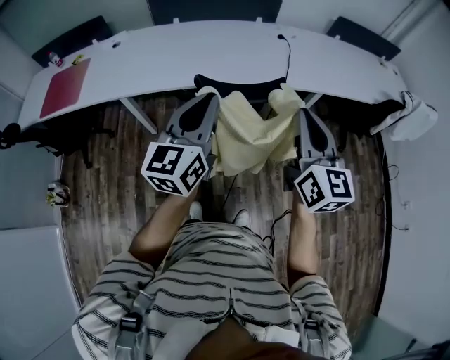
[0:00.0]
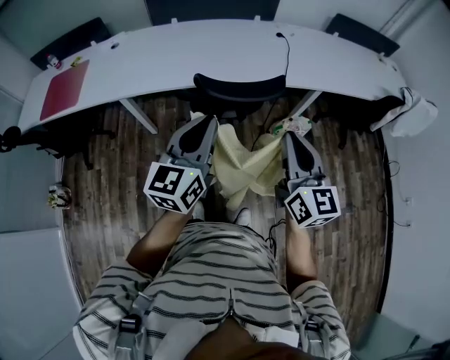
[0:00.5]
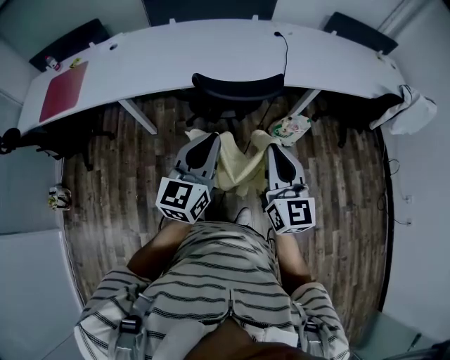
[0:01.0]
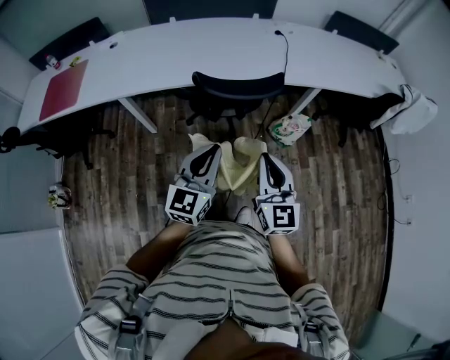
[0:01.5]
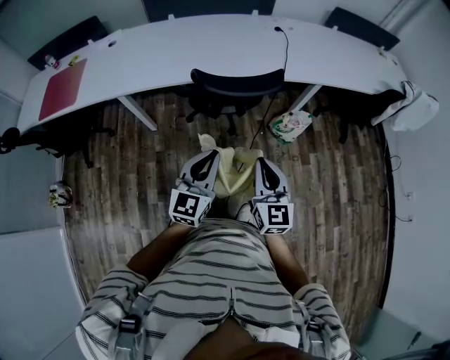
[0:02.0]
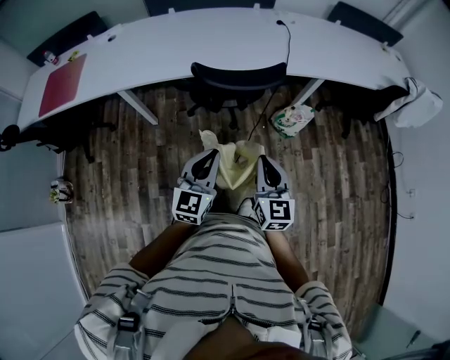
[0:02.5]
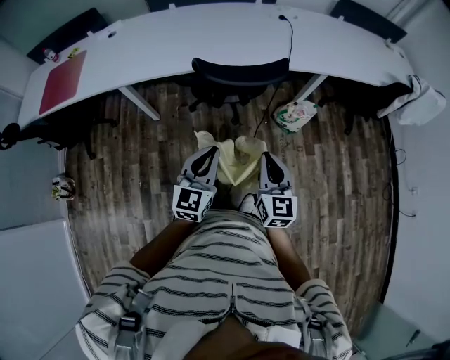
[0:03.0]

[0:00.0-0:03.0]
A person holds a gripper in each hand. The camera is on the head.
0:00.0 to 0:01.5: The grippers both shift downward and backward by approximately 15 cm.
0:01.5 to 0:03.0: Both grippers travel together downward, approximately 10 cm.

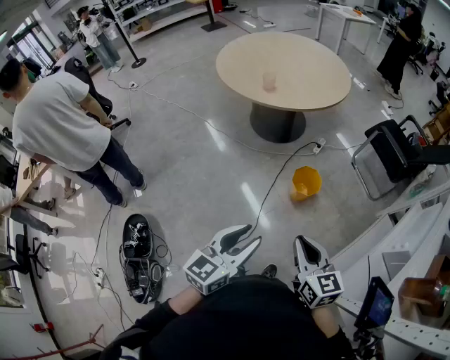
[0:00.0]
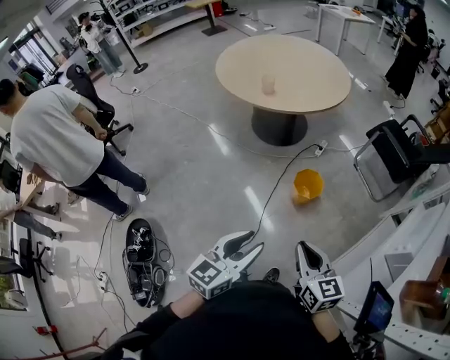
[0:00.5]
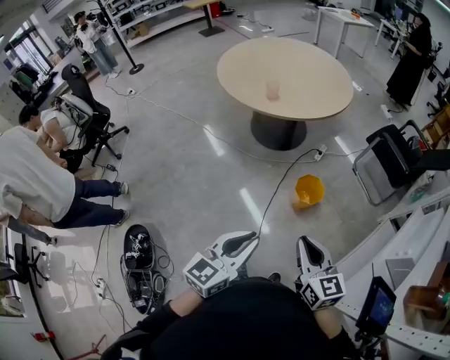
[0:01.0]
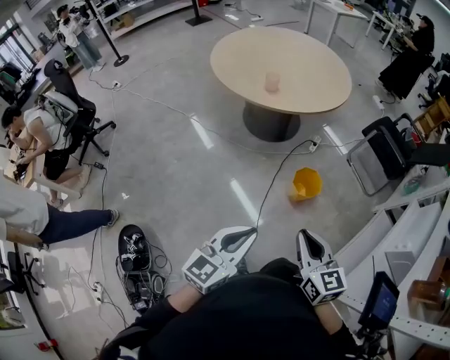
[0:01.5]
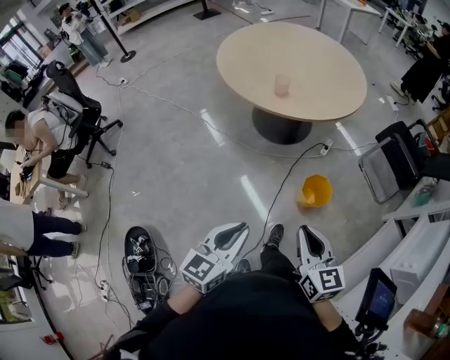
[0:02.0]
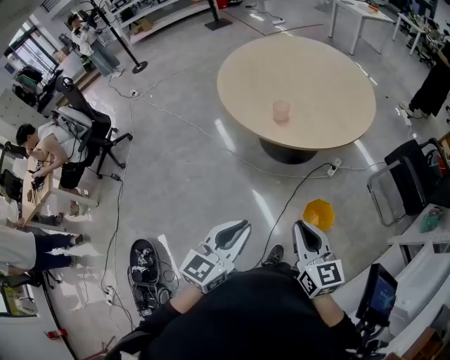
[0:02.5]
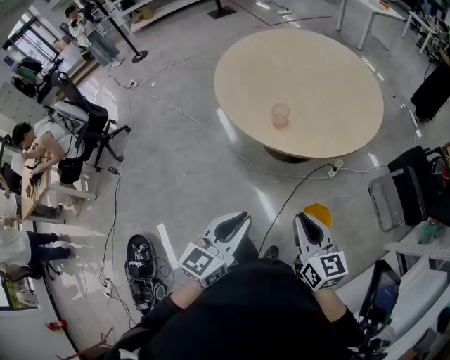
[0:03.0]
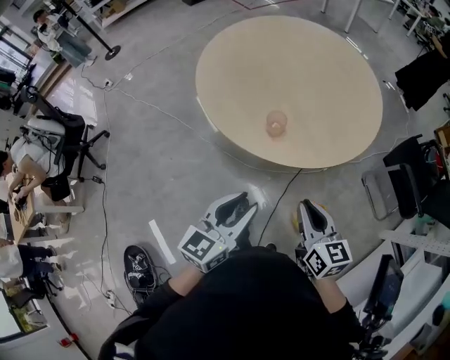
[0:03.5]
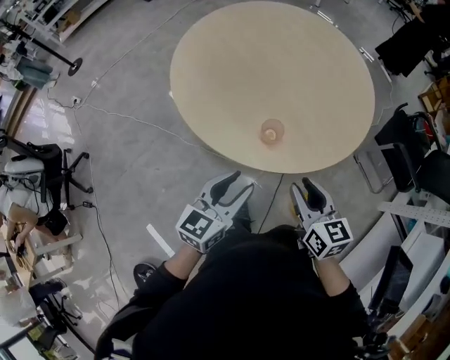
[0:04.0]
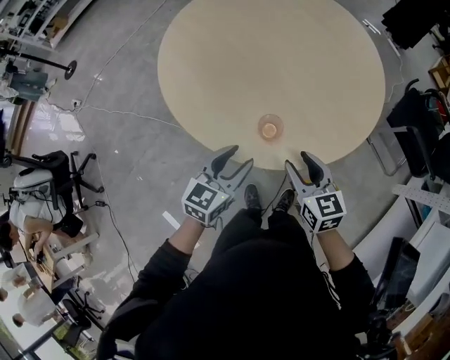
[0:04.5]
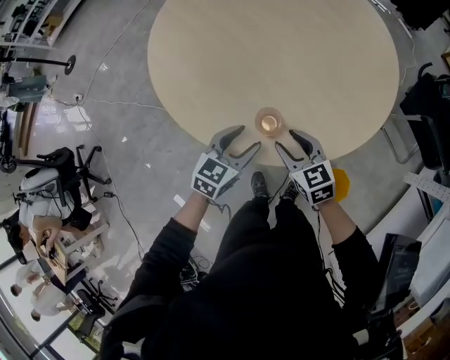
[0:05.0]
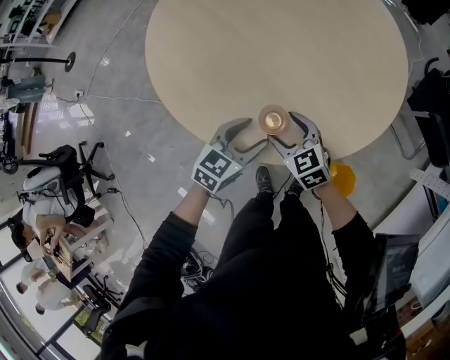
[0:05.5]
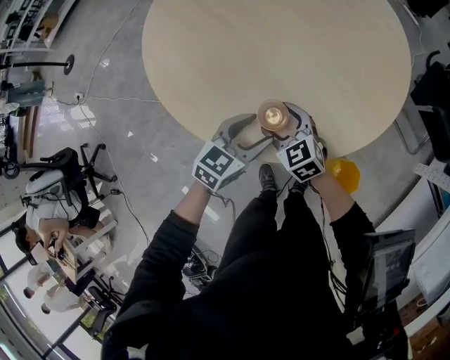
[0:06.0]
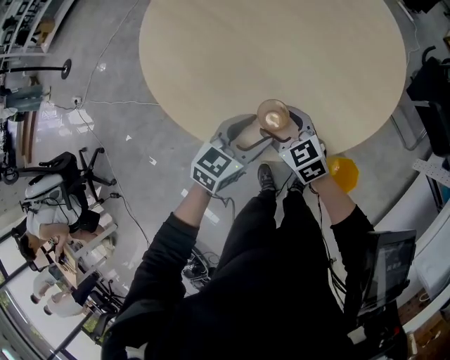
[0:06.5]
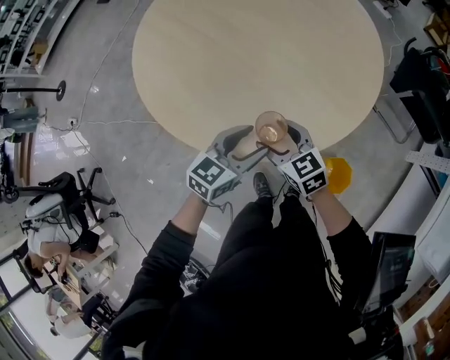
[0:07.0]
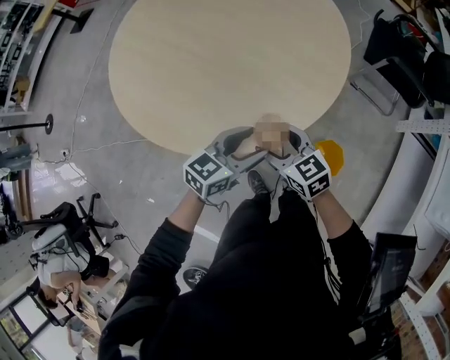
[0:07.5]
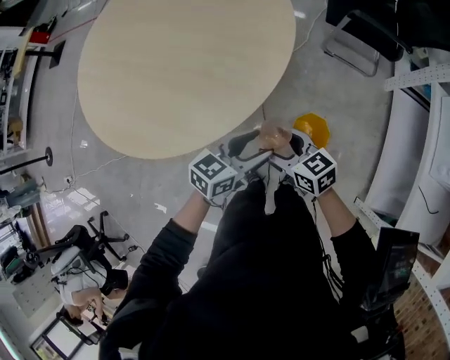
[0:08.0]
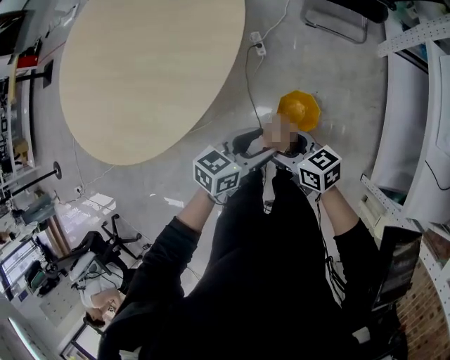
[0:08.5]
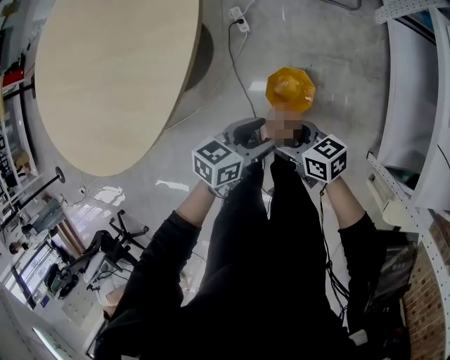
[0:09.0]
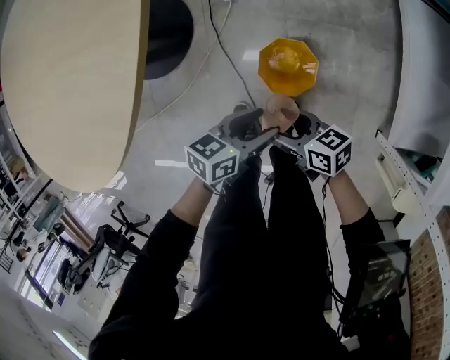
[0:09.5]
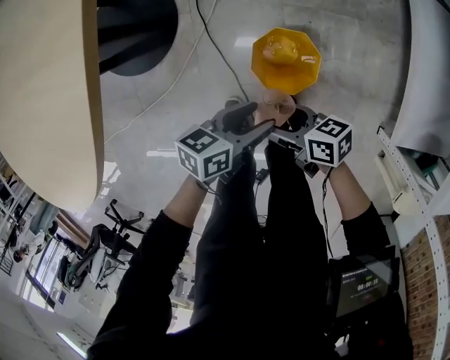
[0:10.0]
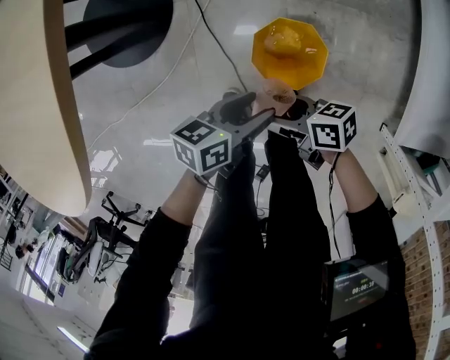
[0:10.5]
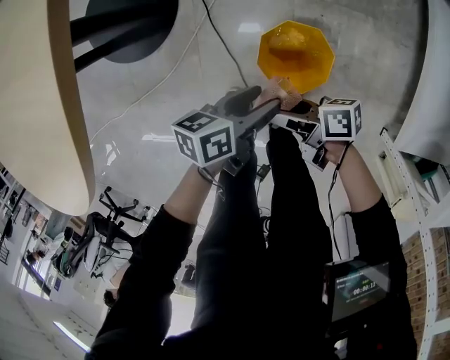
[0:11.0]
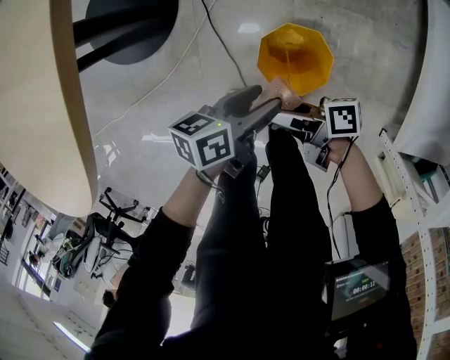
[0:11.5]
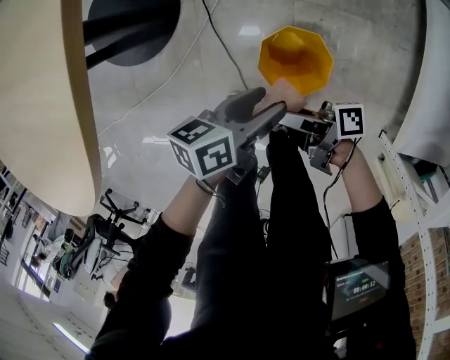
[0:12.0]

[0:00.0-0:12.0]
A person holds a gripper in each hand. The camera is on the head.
0:00.0 to 0:02.0: Both grippers travel together forward and to the left, approximately 20 cm. The left gripper closes its fingers.
0:02.0 to 0:04.0: The two grippers travel together, forward, some 50 cm. The left gripper opens.
0:04.0 to 0:06.0: The left gripper heads downward, forward and to the right, covering some 25 cm, rotates approximately 30 degrees, and opens its fingers; the right gripper travels downward and forward by roughly 30 cm, swivels approximately 30 degrees, and opens up.
0:06.0 to 0:08.0: The grippers both shift to the right and backward by some 30 cm. The left gripper changes its angle by roughly 30 degrees. Meanwhile the right gripper turns by approximately 40 degrees.
0:08.0 to 0:10.0: The grippers both shift downward by roughly 35 cm. The right gripper swivels about 40 degrees; the left gripper changes its angle by about 30 degrees.
0:10.0 to 0:12.0: The right gripper moves approximately 5 cm, and turns by approximately 40 degrees, while the left gripper changes place by some 5 cm.

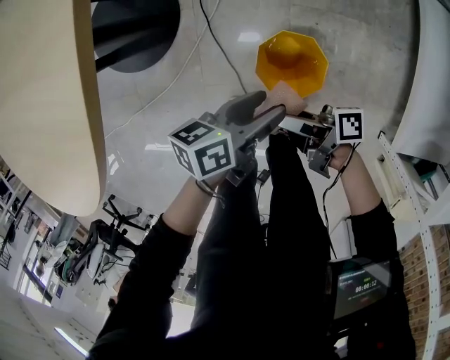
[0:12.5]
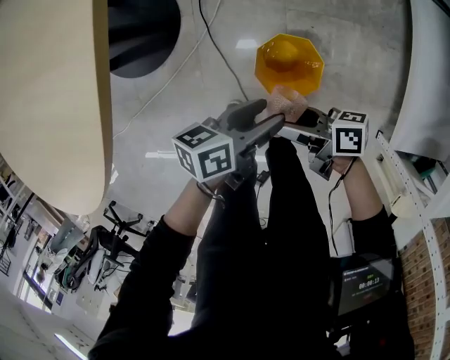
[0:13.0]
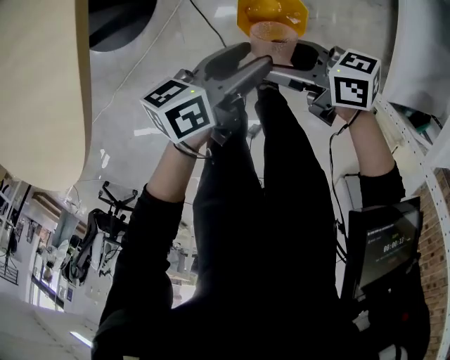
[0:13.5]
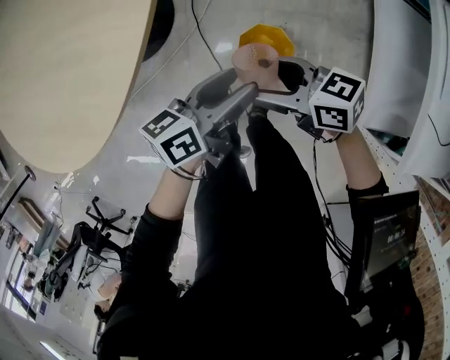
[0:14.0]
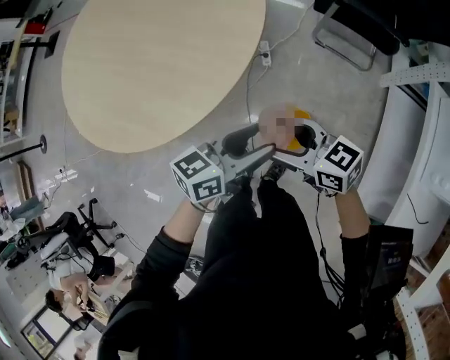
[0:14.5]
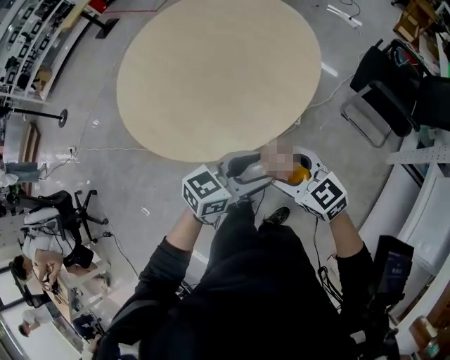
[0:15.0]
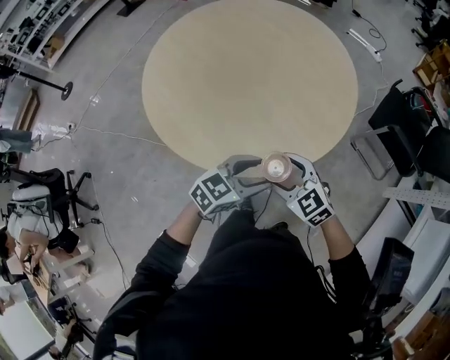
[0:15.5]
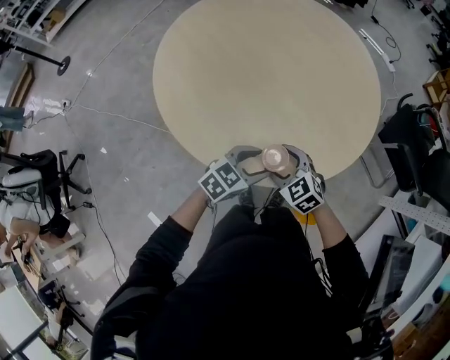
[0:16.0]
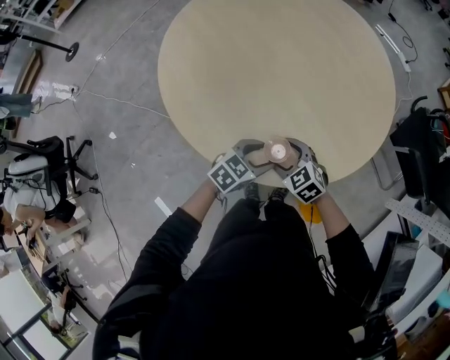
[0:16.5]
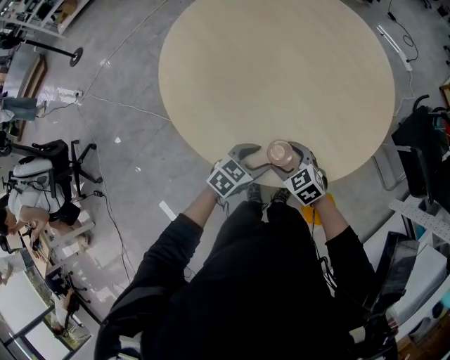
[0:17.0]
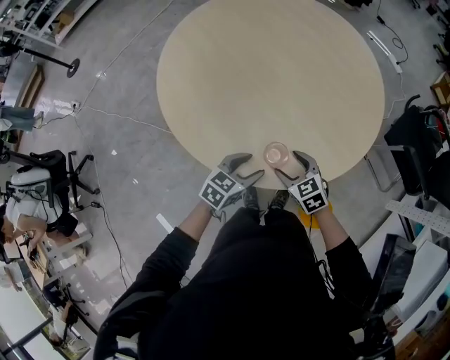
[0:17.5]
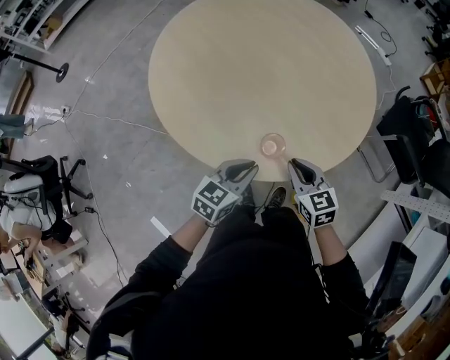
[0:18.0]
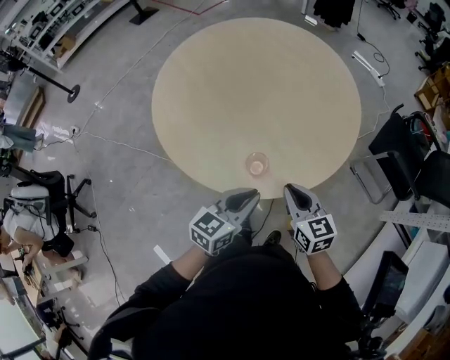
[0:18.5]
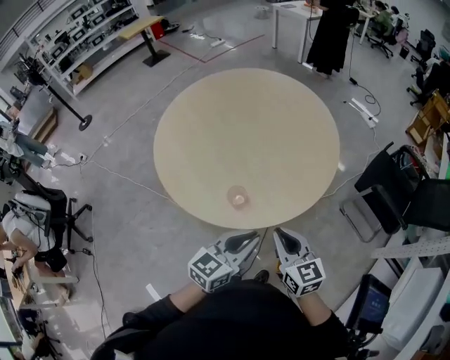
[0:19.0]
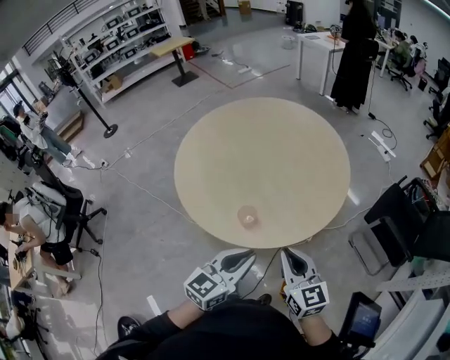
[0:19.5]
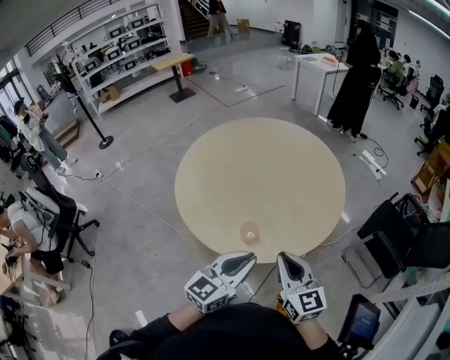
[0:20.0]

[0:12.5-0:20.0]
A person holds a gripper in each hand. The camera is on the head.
0:12.5 to 0:14.5: Both grippers move upward, approximately 35 cm. The right gripper rolls counterclockwise, seen from behind, by approximately 70 degrees. Meanwhile the left gripper rotates roughly 30 degrees.
0:14.5 to 0:16.5: The grippers both shift to the left and forward by approximately 40 cm. The right gripper swivels roughly 50 degrees. The left gripper turns by approximately 30 degrees.
0:16.5 to 0:18.0: The right gripper shifts about 10 cm upward and to the right, changes its angle by about 30 degrees, and closes its fingers. The left gripper travels upward and backward by some 10 cm, and closes.
0:18.0 to 0:20.0: The left gripper travels upward, to the right and backward by roughly 25 cm, and changes its angle by about 30 degrees, while the right gripper moves upward, backward and to the right, roughly 25 cm, and changes its angle by roughly 30 degrees.

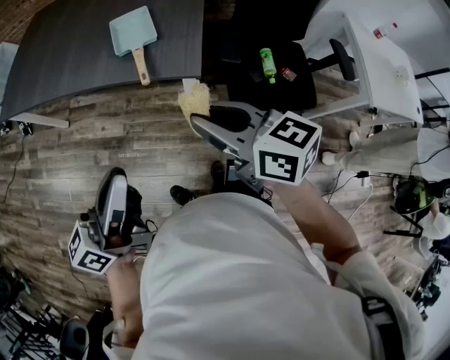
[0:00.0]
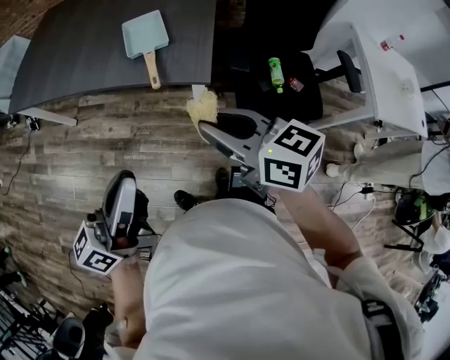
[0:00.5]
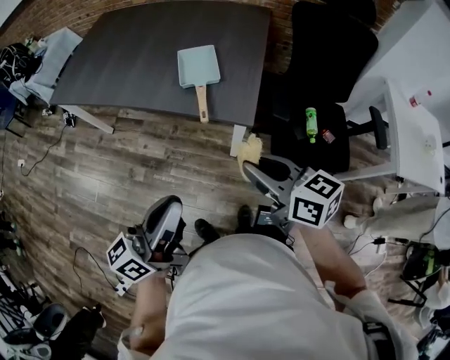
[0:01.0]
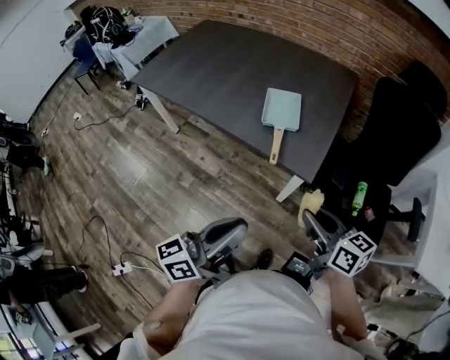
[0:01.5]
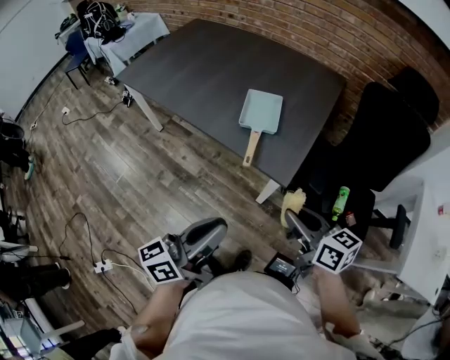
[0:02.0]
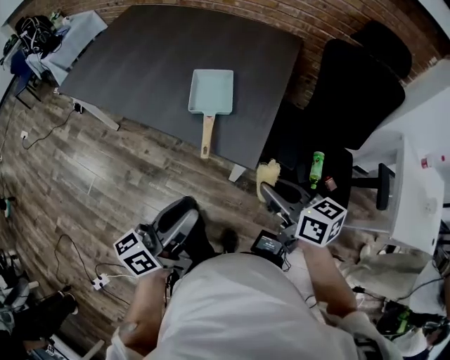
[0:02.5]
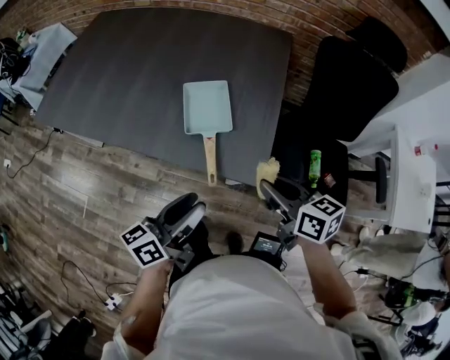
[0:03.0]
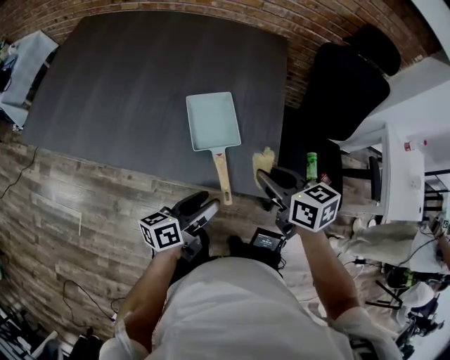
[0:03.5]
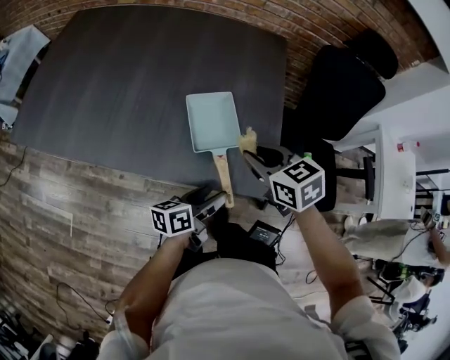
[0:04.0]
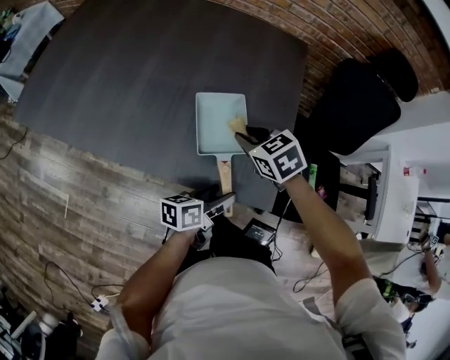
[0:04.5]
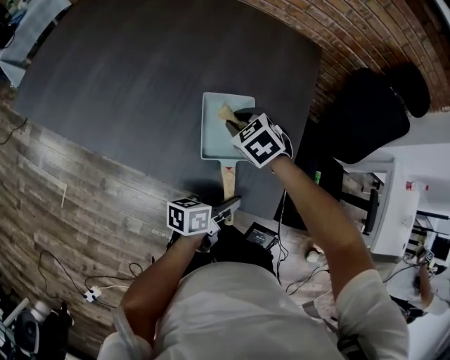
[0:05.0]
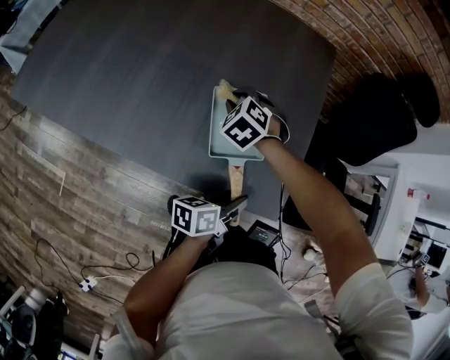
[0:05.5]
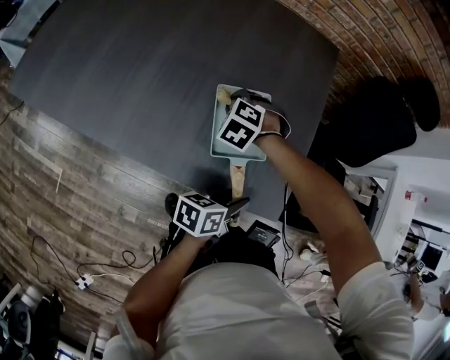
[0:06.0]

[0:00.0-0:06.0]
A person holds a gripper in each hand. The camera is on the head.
0:00.0 to 0:02.0: Both grippers travel together to the right, some 5 cm.
0:02.0 to 0:04.0: The right gripper ends up roughly 30 cm from where it was, and swivels about 30 degrees. The left gripper moves some 35 cm, turns by roughly 40 degrees, and opens.
0:04.0 to 0:06.0: The right gripper travels downward, forward and to the left by some 25 cm, and rotates around the line of its fingers by some 50 degrees, counterclockwise from behind, while the left gripper moves about 5 cm, and closes.
